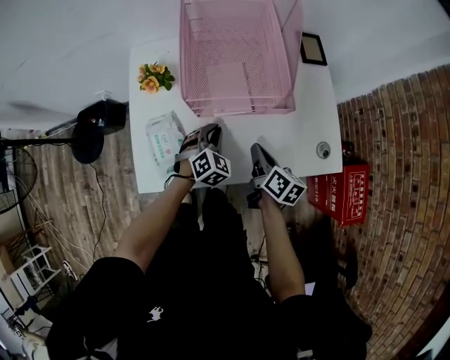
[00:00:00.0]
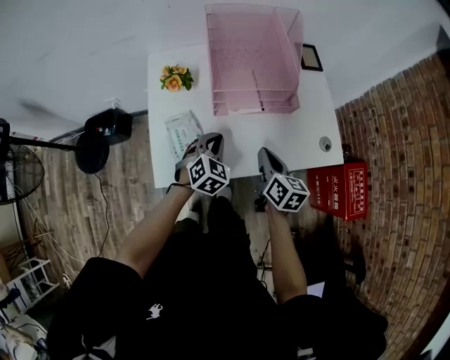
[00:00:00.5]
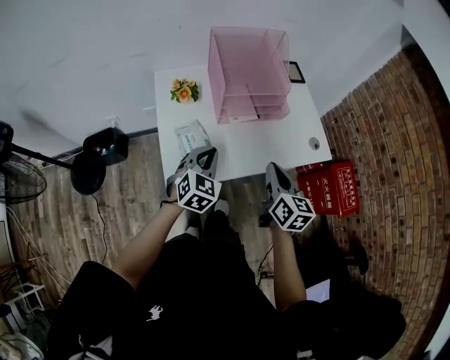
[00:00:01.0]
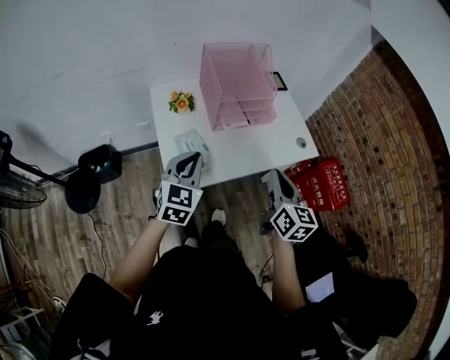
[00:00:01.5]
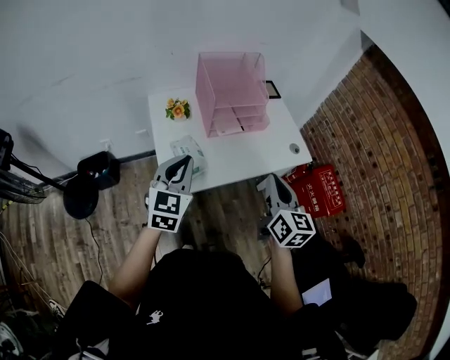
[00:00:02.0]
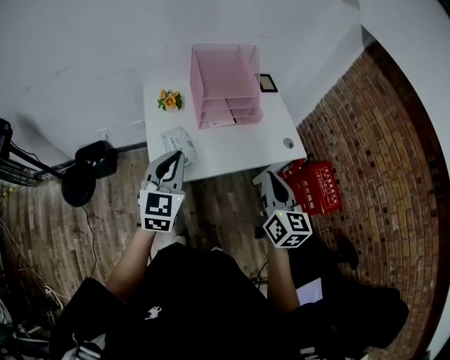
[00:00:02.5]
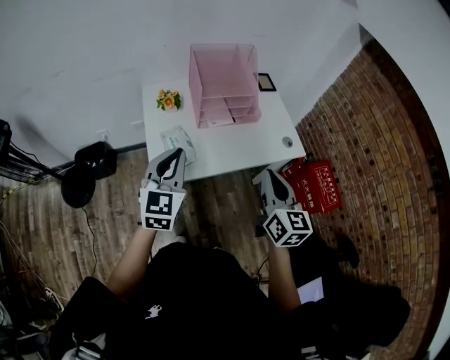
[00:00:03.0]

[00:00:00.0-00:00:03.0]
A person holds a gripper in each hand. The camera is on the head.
00:00:00.0 to 00:00:01.5: The right gripper goes approximately 30 cm upward and backward, and swivels about 40 degrees. Meanwhile the left gripper shifts roughly 35 cm upward, backward and to the left, and turns by roughly 30 degrees.
00:00:01.5 to 00:00:03.0: The right gripper goes roughly 5 cm to the right. The left gripper goes approximately 5 cm upward.

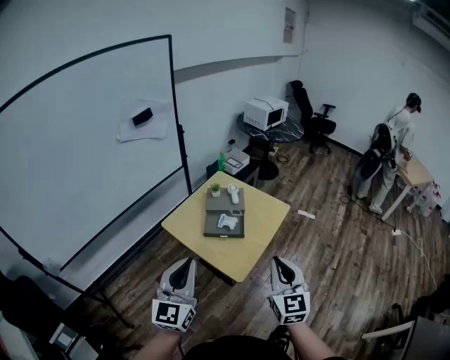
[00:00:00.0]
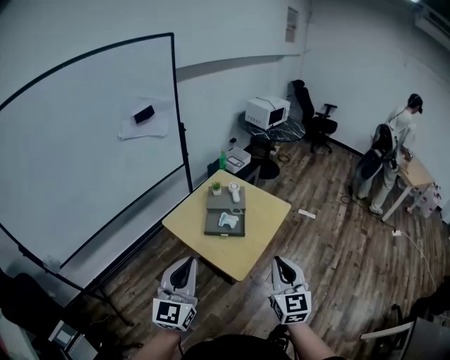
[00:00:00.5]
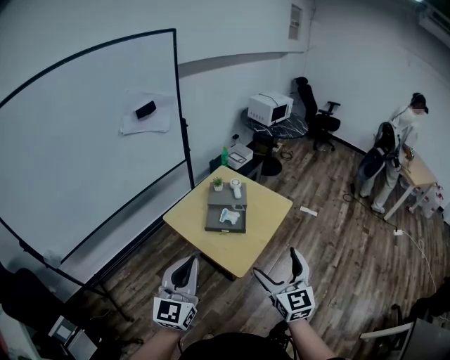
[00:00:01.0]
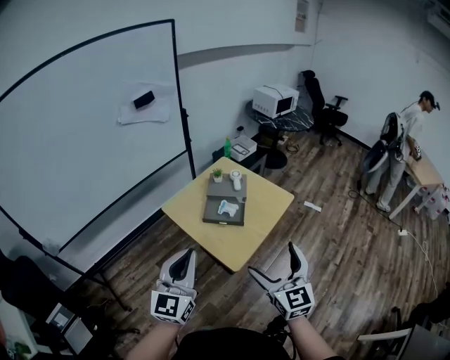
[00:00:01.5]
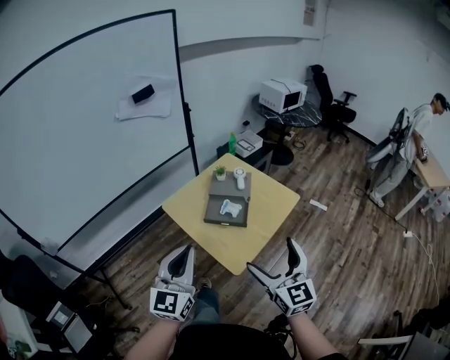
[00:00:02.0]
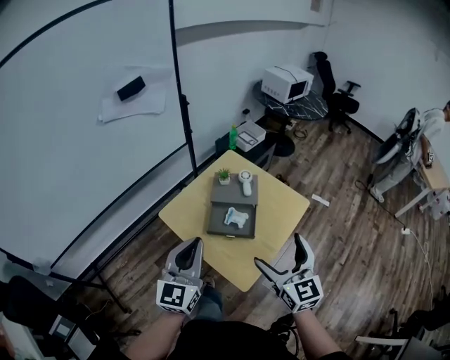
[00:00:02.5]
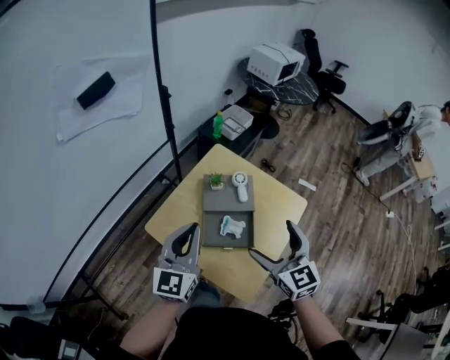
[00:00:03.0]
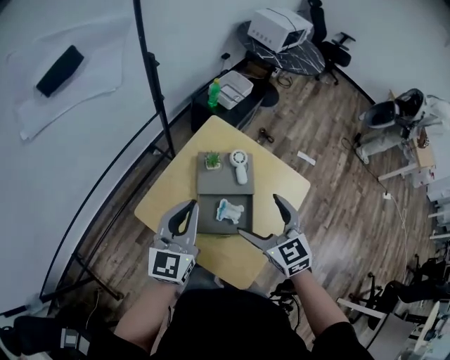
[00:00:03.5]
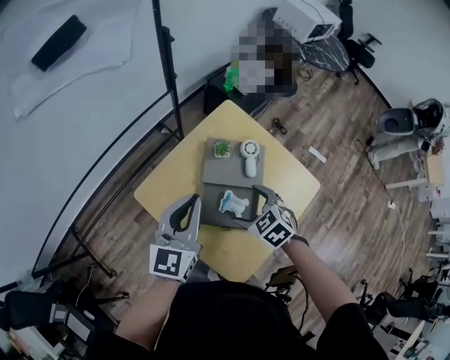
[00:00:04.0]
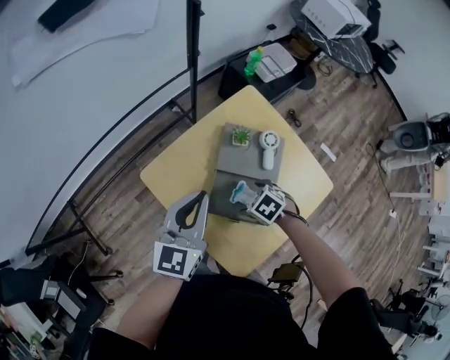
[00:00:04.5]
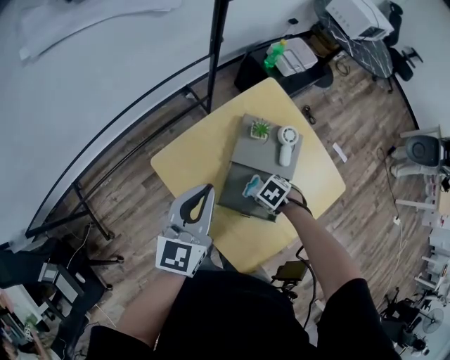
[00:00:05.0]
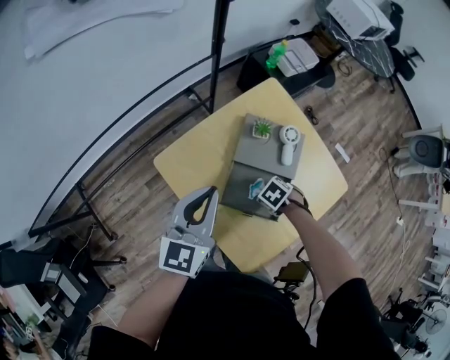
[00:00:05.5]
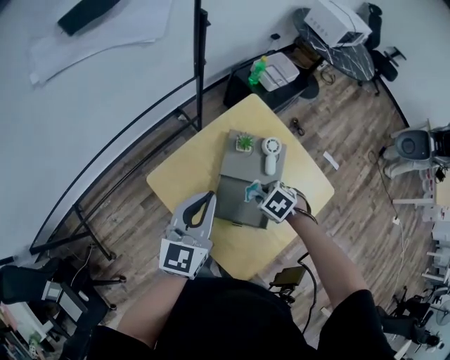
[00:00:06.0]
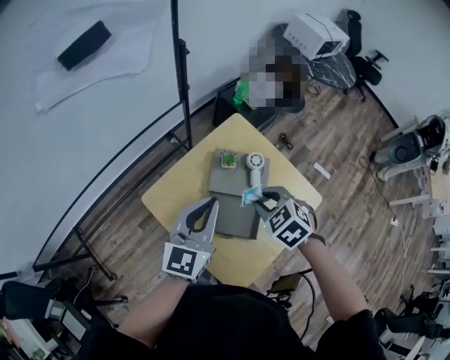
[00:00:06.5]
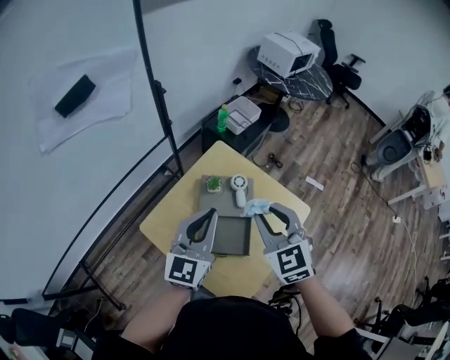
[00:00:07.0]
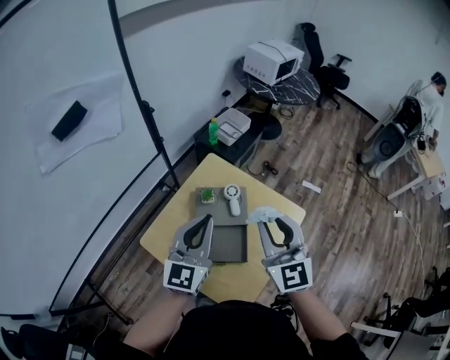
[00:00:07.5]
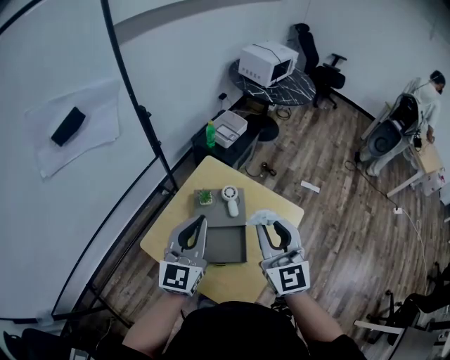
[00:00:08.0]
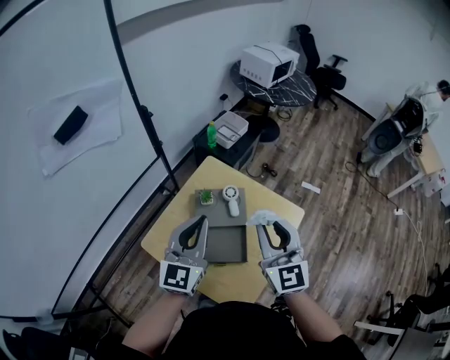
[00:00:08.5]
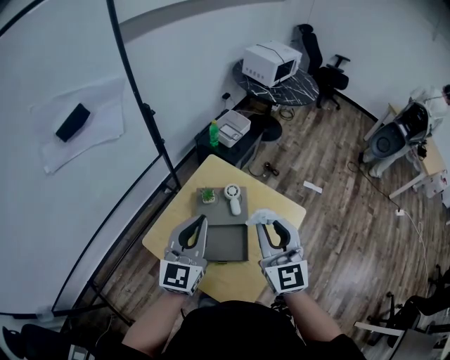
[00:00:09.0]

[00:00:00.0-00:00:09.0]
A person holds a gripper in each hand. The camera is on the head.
00:00:00.0 to 00:00:02.0: The right gripper ends up roughly 5 cm from where it was, and opens its fingers. Meanwhile the left gripper shifts by about 5 cm.
00:00:02.0 to 00:00:04.5: The left gripper moves some 40 cm; the right gripper changes place by some 50 cm, and angles its fingers downward, by roughly 80 degrees.
00:00:04.5 to 00:00:07.0: The left gripper heads upward, covering roughly 10 cm, while the right gripper heads upward, covering approximately 35 cm, angles its fingers upward, by roughly 50 degrees, and closes up.
00:00:07.0 to 00:00:09.0: The right gripper ends up some 5 cm from where it was, and changes its angle by some 30 degrees.

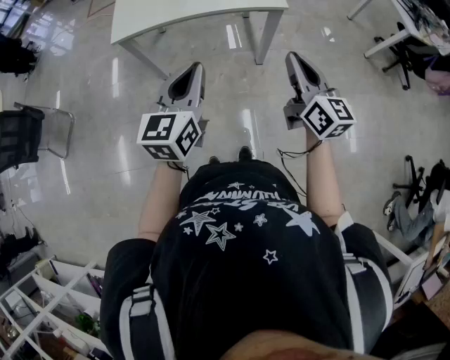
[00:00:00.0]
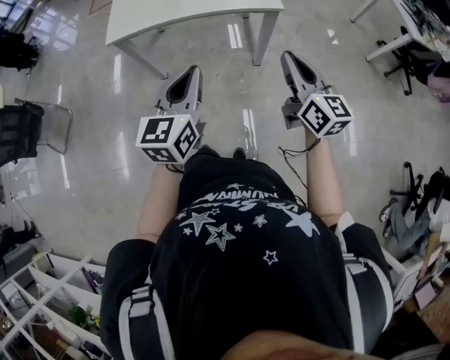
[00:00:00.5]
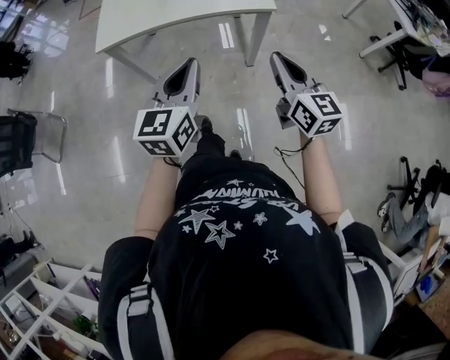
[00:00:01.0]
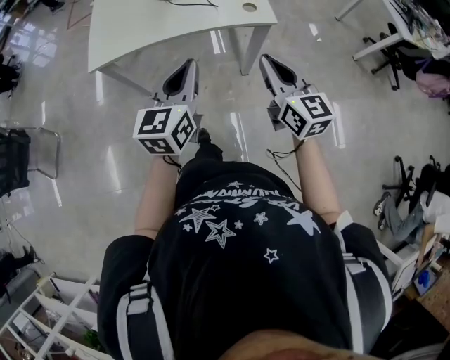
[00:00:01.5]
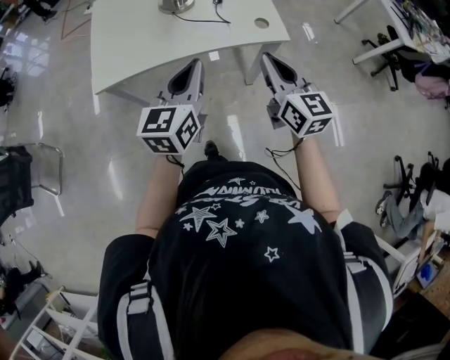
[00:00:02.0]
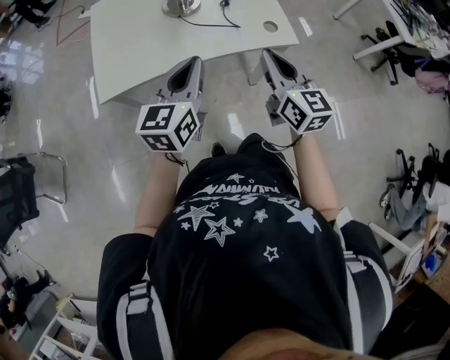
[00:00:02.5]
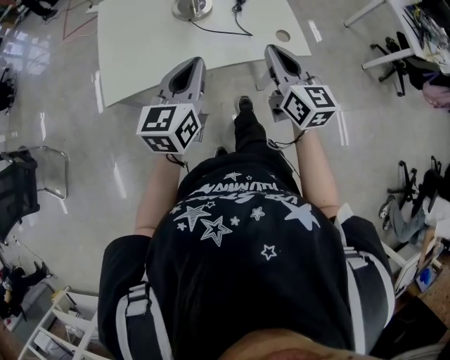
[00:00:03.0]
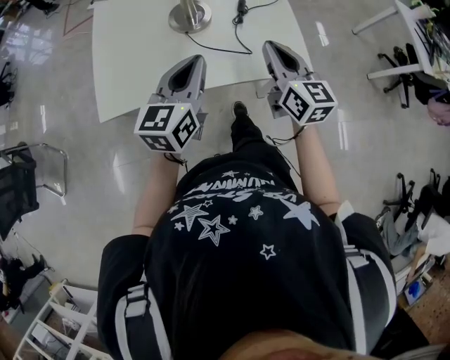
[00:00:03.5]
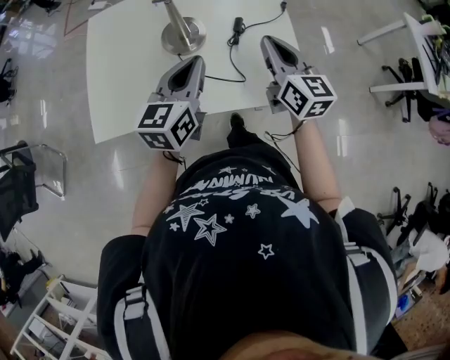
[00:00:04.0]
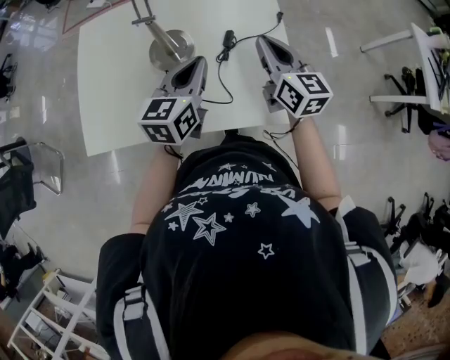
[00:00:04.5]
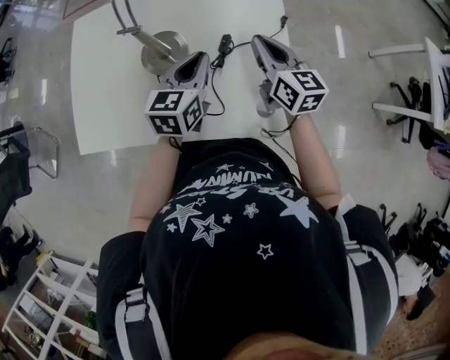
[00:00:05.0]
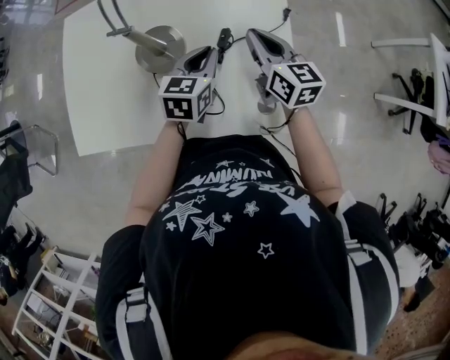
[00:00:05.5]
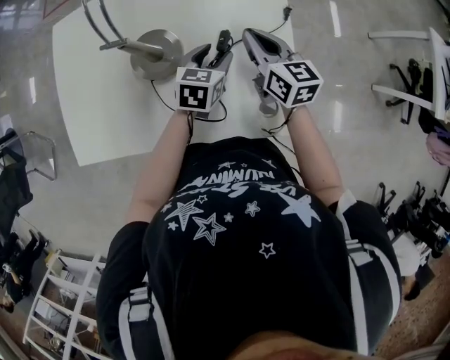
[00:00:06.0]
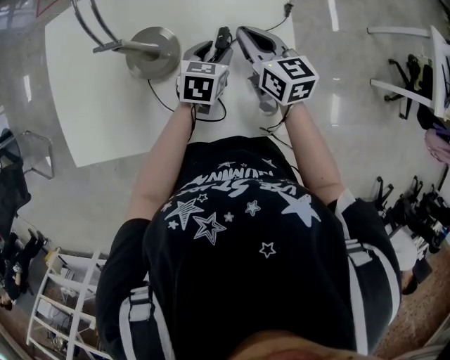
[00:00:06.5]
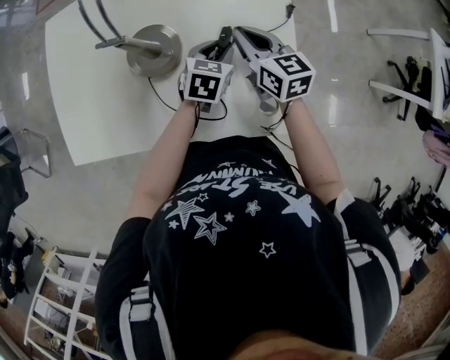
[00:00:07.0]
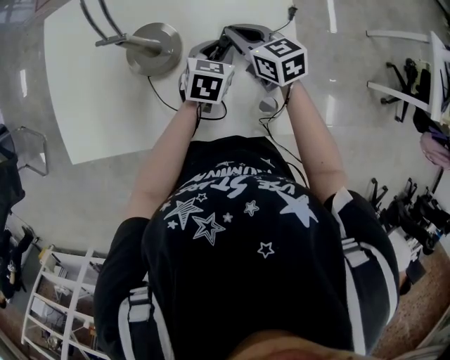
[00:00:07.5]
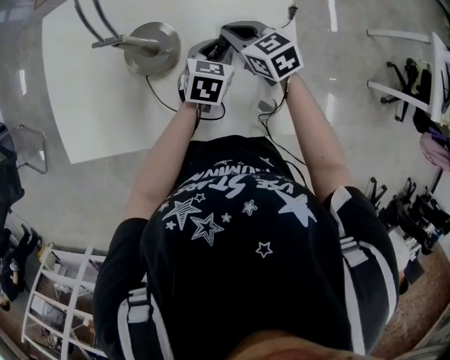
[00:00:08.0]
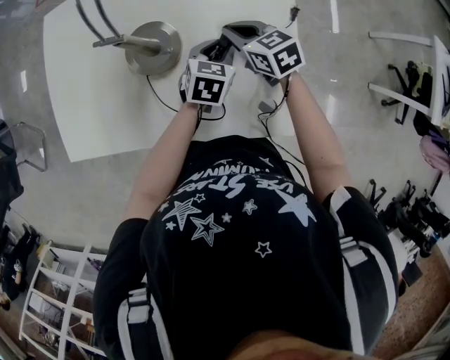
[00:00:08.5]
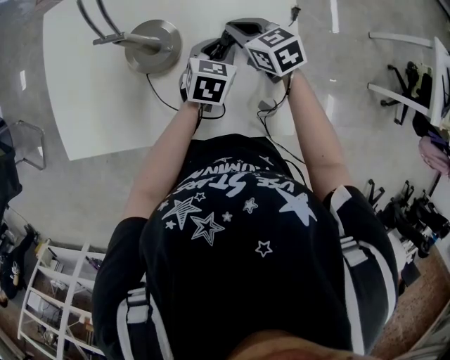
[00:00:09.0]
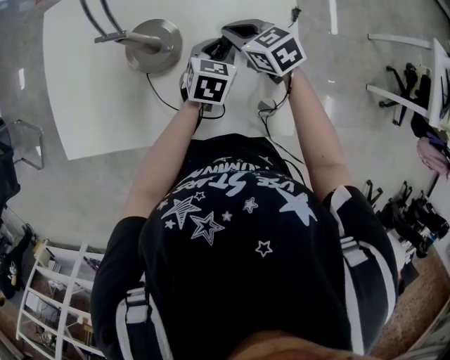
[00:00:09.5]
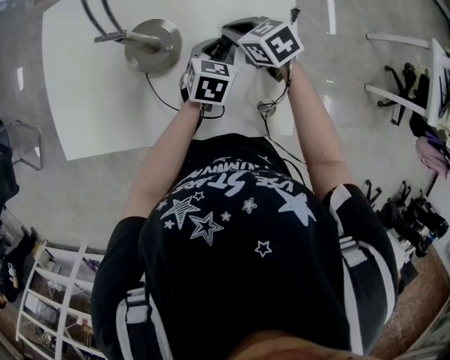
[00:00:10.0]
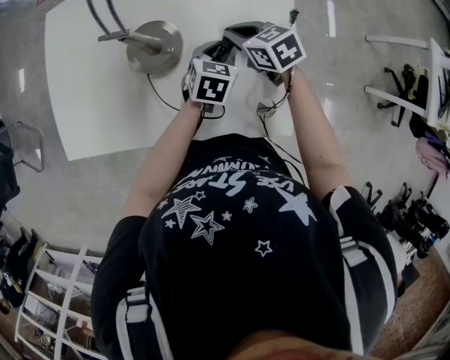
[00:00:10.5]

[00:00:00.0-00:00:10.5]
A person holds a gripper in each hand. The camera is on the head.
00:00:00.0 to 00:00:02.0: The grippers both shift forward by about 25 cm.
00:00:02.0 to 00:00:04.0: Both grippers move forward, some 30 cm.
00:00:04.0 to 00:00:06.5: The right gripper travels forward and downward by some 20 cm; the left gripper moves downward, forward and to the right, roughly 30 cm, tips its fingers downward by about 30 degrees, and opens.
00:00:06.5 to 00:00:08.5: The right gripper goes some 5 cm downward, and swivels approximately 30 degrees.
00:00:08.5 to 00:00:10.5: There are only small adjustments of the grippers.

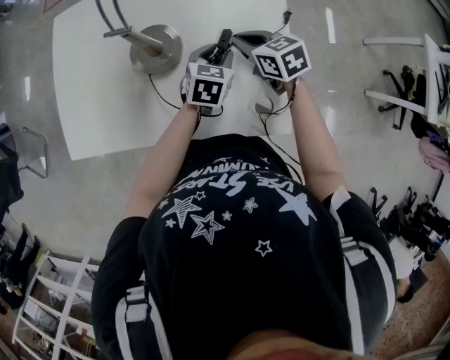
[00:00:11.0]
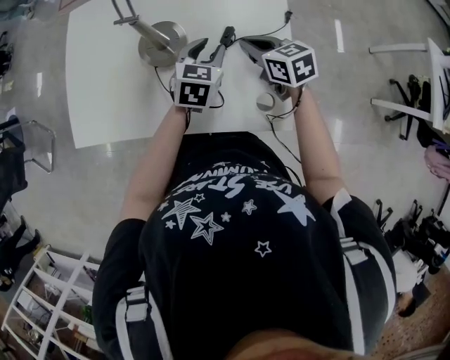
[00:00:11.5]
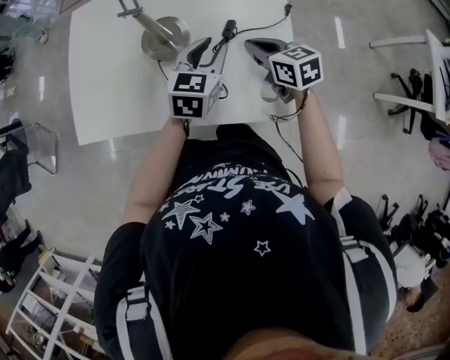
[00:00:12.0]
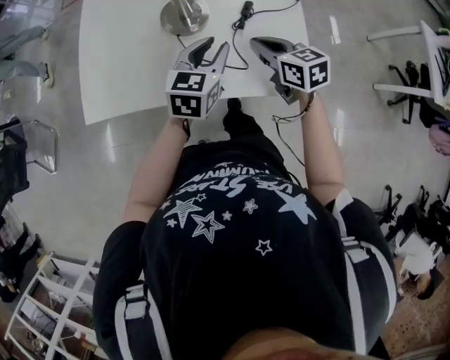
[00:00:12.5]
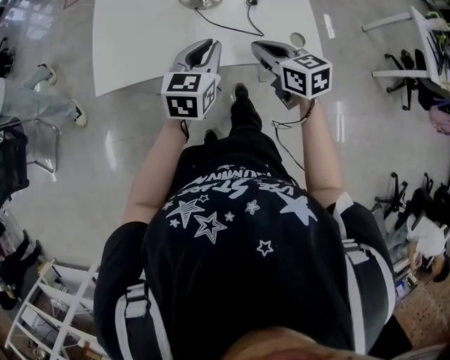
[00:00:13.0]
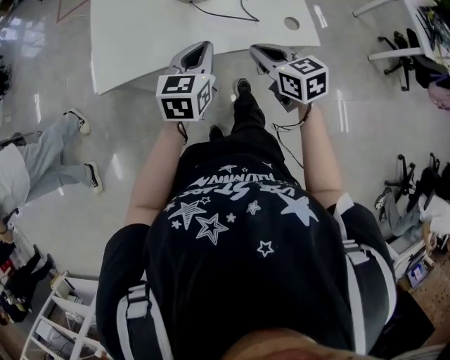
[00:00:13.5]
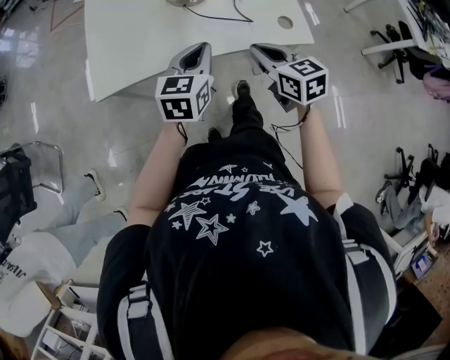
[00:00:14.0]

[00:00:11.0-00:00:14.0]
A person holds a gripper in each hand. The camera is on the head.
00:00:11.0 to 00:00:12.5: The left gripper travels to the left, backward and upward by some 20 cm, while the right gripper heads backward and to the left, covering some 15 cm.
00:00:12.5 to 00:00:14.0: The two grippers go about 20 cm backward and to the left. The left gripper closes its fingers.
